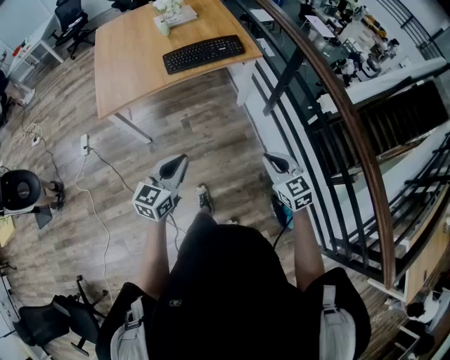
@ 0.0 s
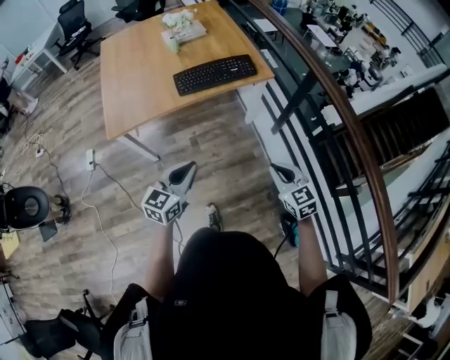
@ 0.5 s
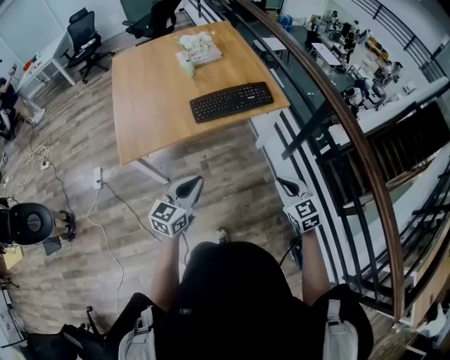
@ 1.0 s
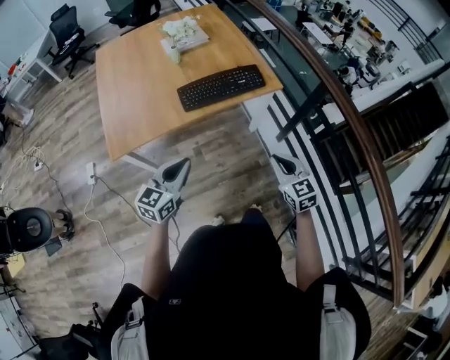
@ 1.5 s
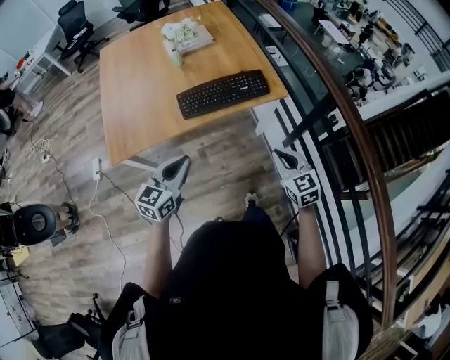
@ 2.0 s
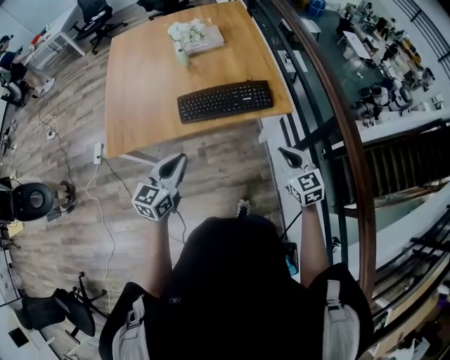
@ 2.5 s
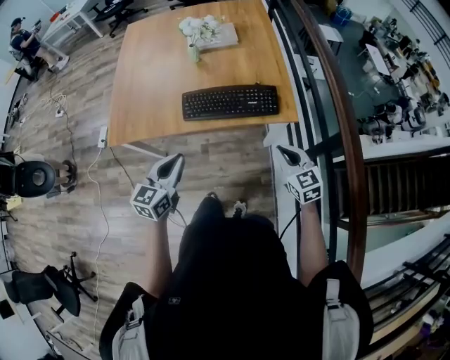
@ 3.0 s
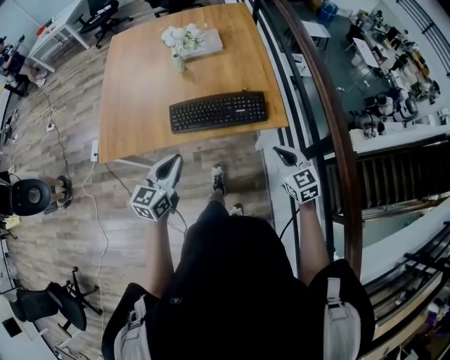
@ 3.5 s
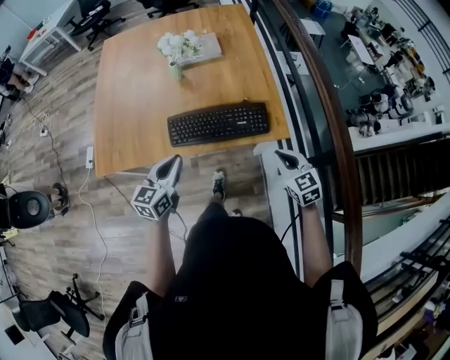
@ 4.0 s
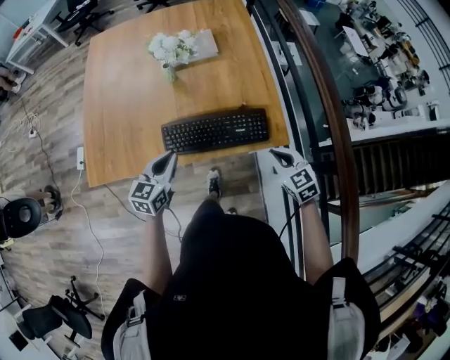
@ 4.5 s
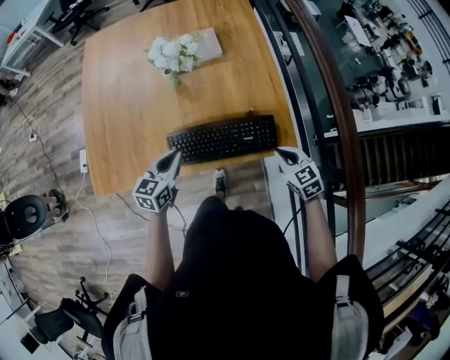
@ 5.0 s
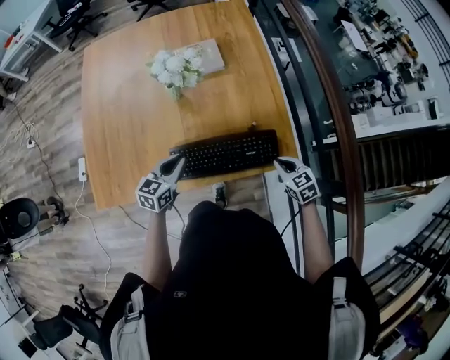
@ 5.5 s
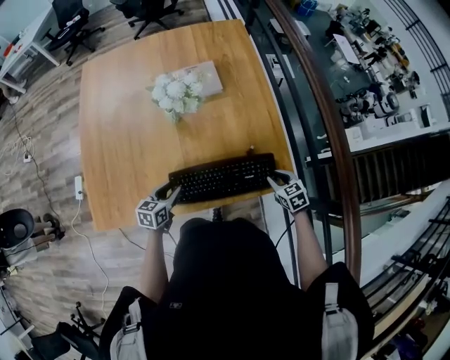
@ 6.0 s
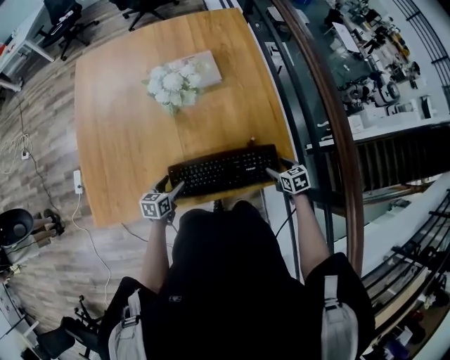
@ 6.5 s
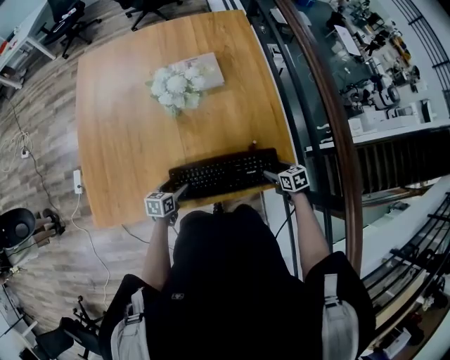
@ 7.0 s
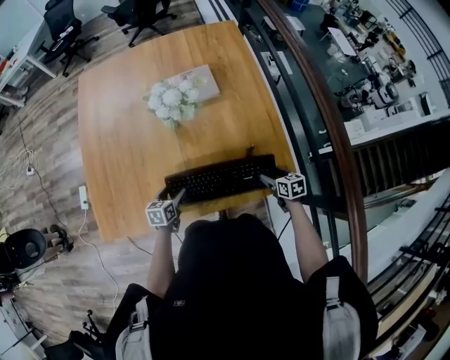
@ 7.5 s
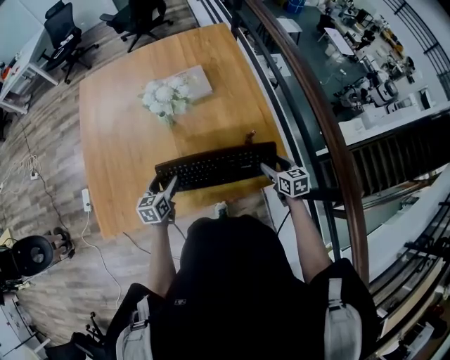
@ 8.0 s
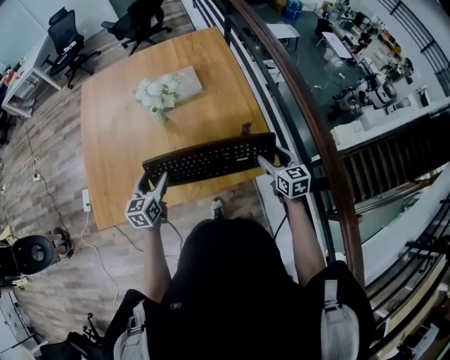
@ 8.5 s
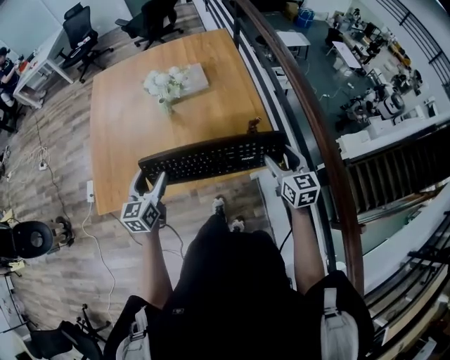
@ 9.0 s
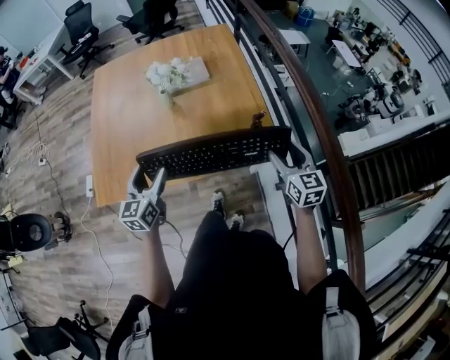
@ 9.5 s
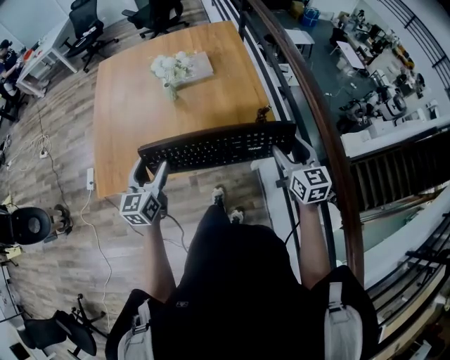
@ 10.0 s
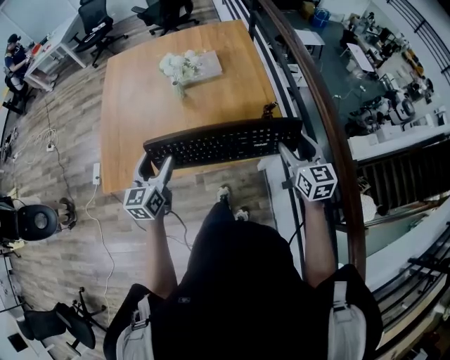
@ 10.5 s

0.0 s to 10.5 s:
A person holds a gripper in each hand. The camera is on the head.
0.0 to 2.0 s: The grippers both shift forward by approximately 30 cm.
2.0 to 4.0 s: The left gripper heads forward, covering roughly 20 cm; the right gripper goes approximately 25 cm forward and to the right.
4.0 to 6.5 s: The left gripper goes approximately 30 cm downward and forward, changes its angle by some 30 degrees, and opens up; the right gripper goes approximately 30 cm forward and downward, rotates some 30 degrees, and opens.
6.5 to 8.5 s: The grippers both shift upward by some 20 cm. The left gripper rotates about 30 degrees, while the right gripper changes its angle by roughly 30 degrees.
8.5 to 10.5 s: The left gripper heads backward and upward, covering roughly 15 cm; the right gripper moves upward and backward, approximately 15 cm.

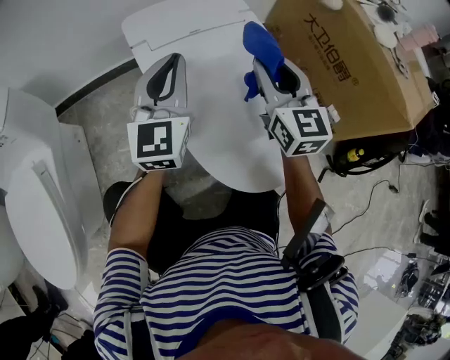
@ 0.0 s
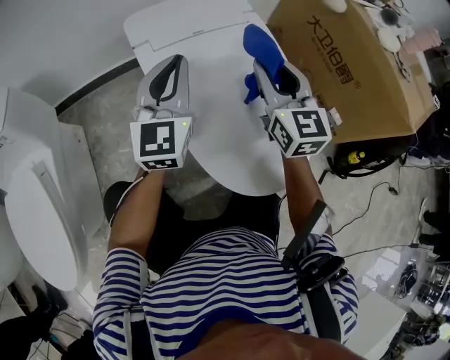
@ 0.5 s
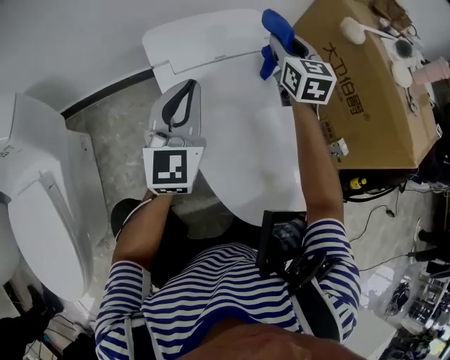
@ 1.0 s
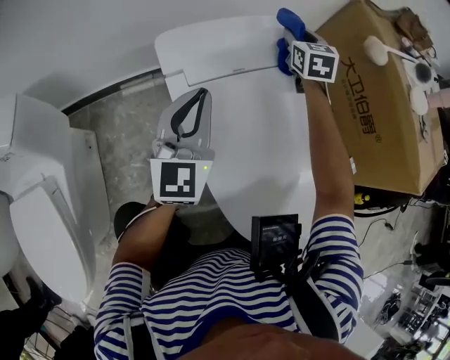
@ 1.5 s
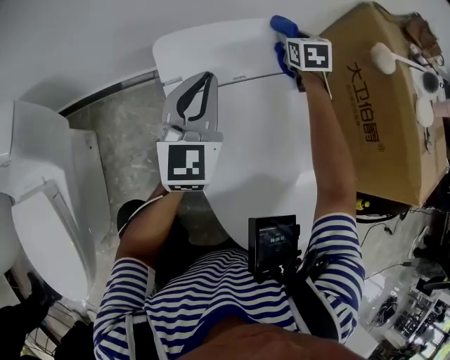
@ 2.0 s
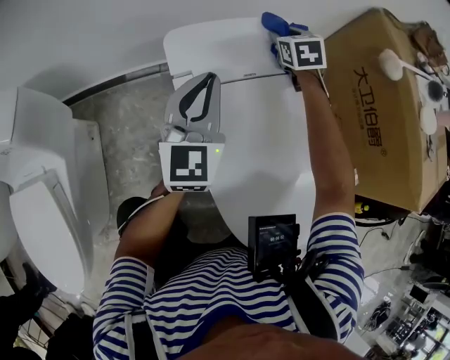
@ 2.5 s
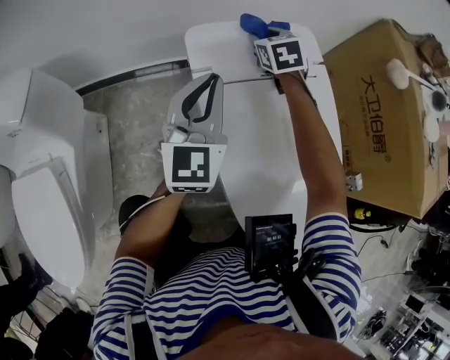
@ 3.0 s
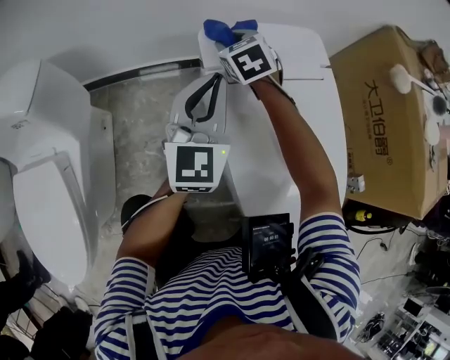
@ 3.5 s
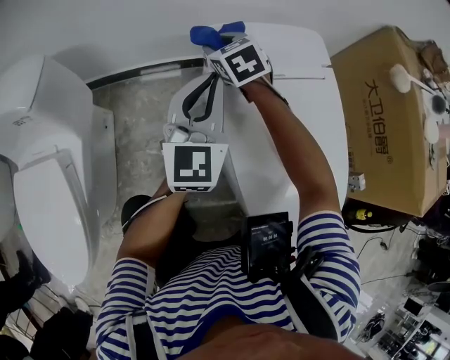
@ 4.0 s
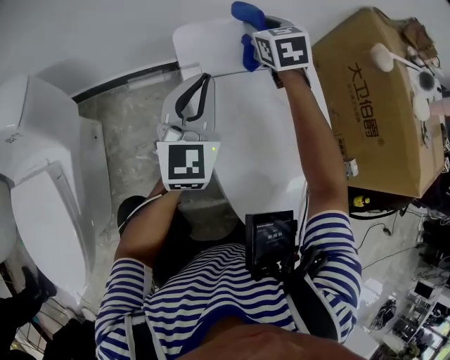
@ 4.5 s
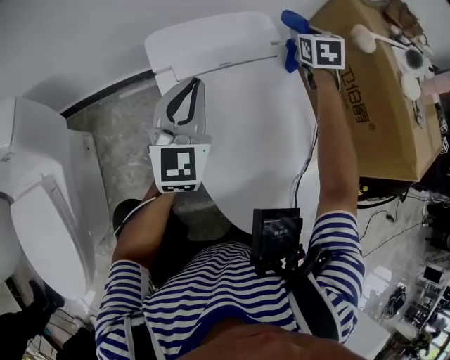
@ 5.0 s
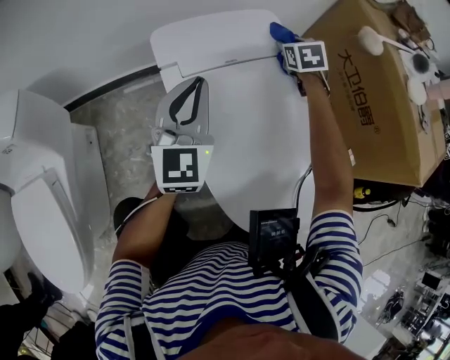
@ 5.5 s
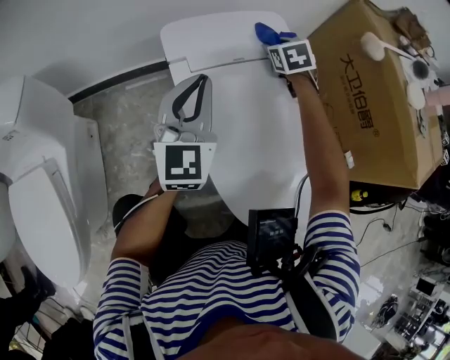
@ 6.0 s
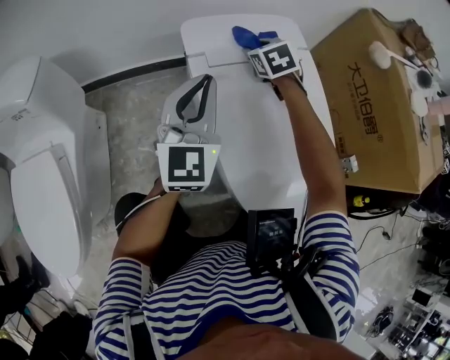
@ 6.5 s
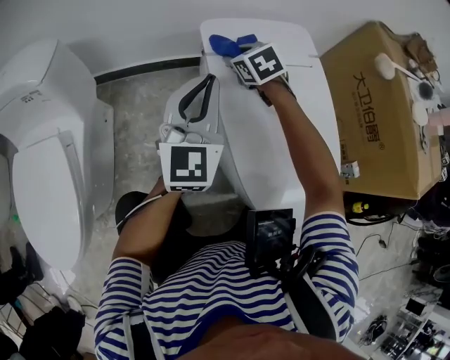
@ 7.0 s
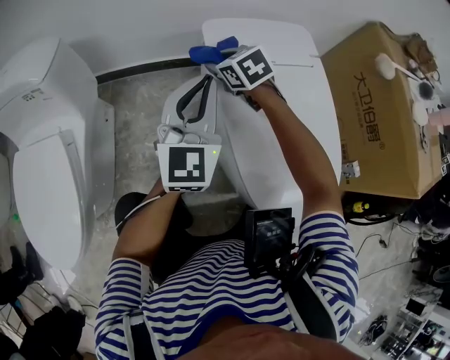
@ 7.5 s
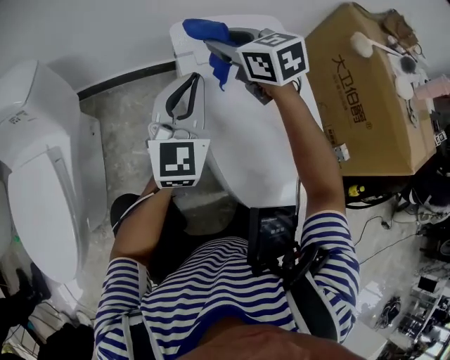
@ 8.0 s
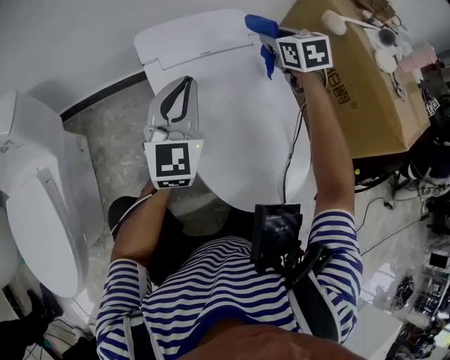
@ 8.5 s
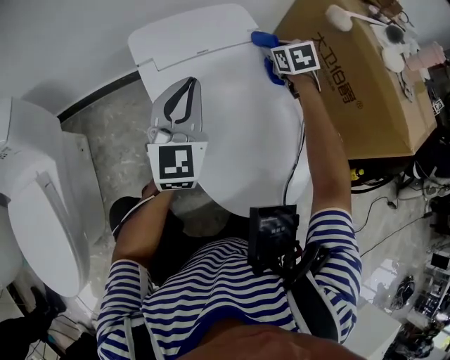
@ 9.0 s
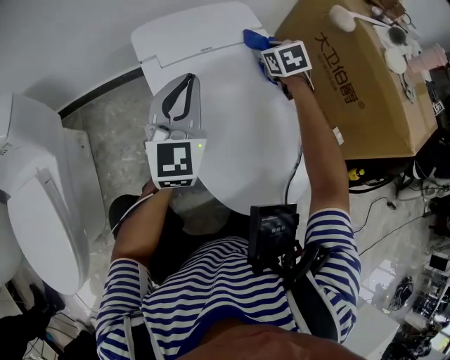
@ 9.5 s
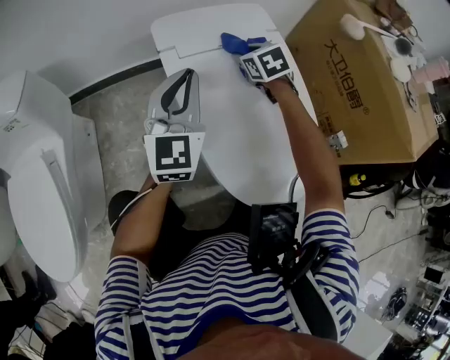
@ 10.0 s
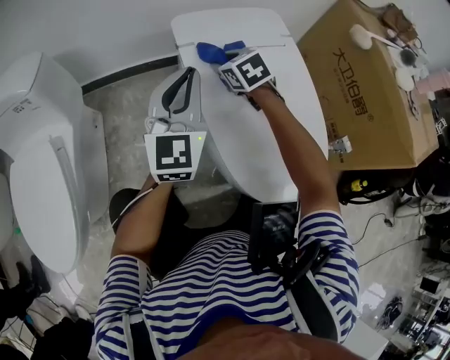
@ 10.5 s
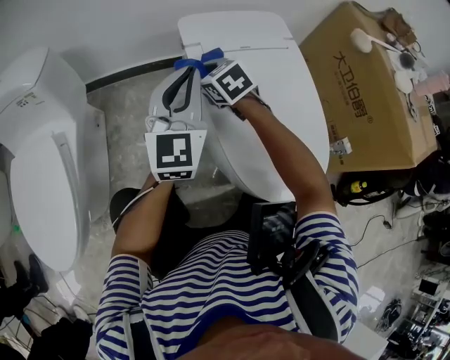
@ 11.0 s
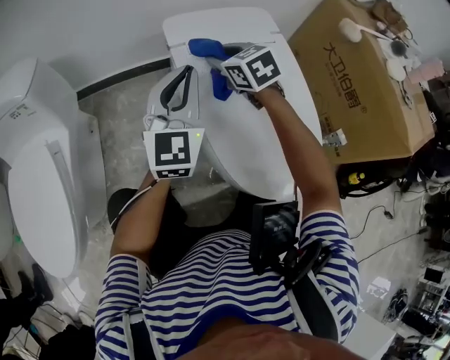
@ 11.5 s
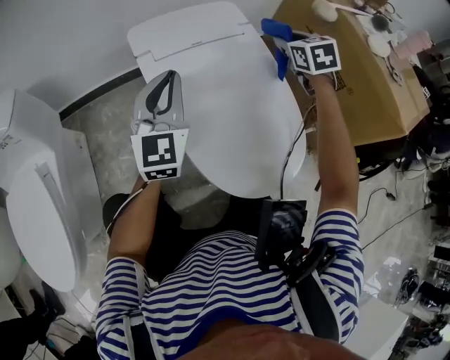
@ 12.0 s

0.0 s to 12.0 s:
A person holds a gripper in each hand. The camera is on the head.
0.0 to 2.0 s: The right gripper is displaced forward by roughly 35 cm, and tips its fingers downward by some 30 degrees. Meanwhile the left gripper goes some 15 cm forward.
2.0 to 4.0 s: The right gripper moves to the left, approximately 35 cm, and rotates some 30 degrees. The left gripper shifts some 10 cm to the left.
4.0 to 6.0 s: The right gripper goes roughly 30 cm to the right, and rotates about 20 degrees; the left gripper goes some 10 cm to the right.
6.0 to 8.0 s: The left gripper moves approximately 5 cm, while the right gripper goes about 25 cm to the left, upward and backward, and changes its angle by roughly 40 degrees.
8.0 to 10.0 s: The right gripper is displaced to the right and downward by approximately 20 cm, and swivels roughly 30 degrees.
10.0 to 12.0 s: The right gripper is displaced to the right and upward by roughly 20 cm; the left gripper goes to the left and returns, roughly 5 cm each way.

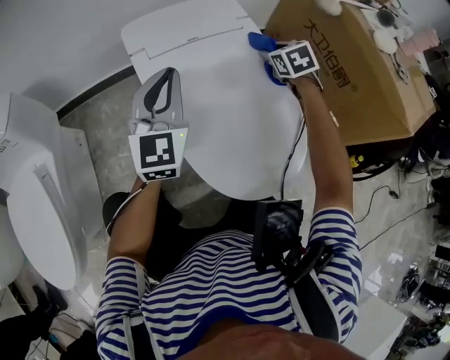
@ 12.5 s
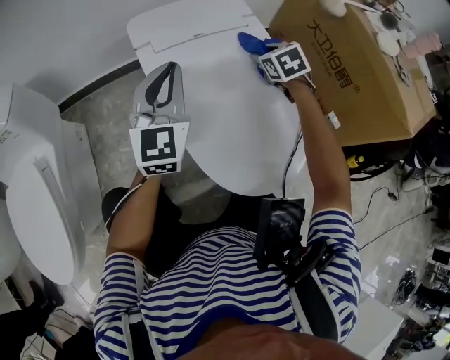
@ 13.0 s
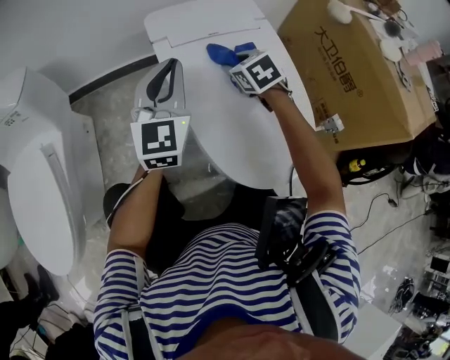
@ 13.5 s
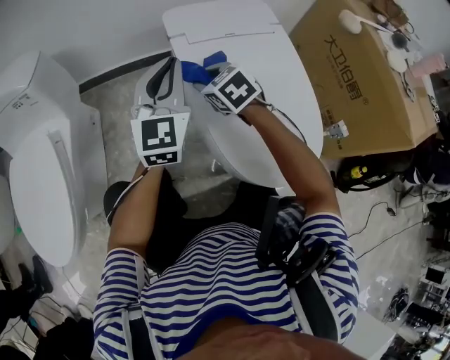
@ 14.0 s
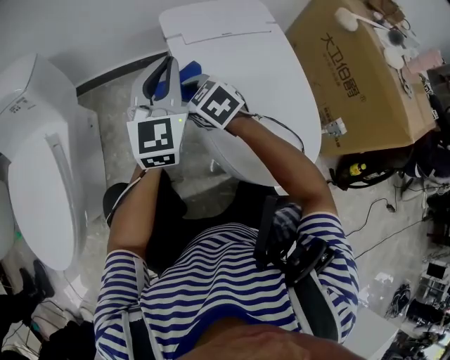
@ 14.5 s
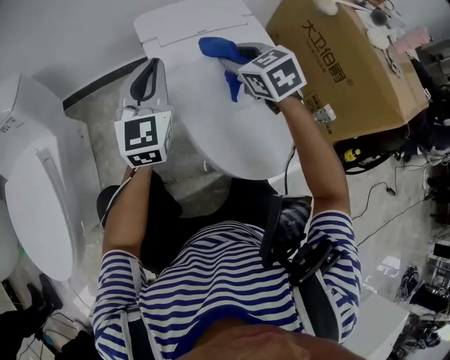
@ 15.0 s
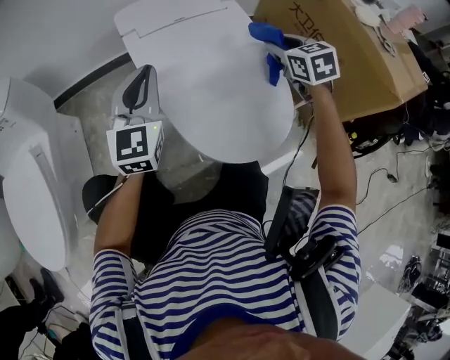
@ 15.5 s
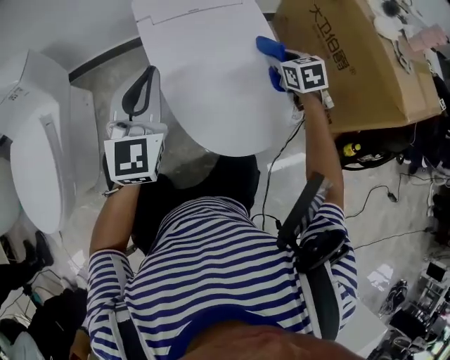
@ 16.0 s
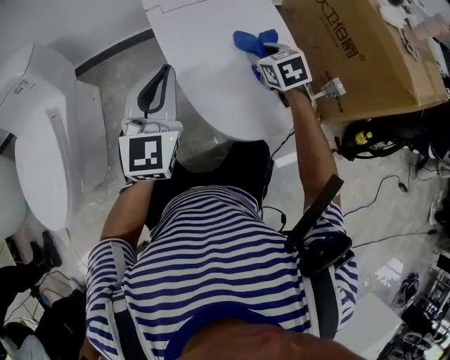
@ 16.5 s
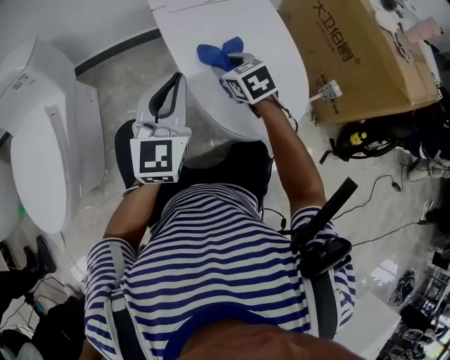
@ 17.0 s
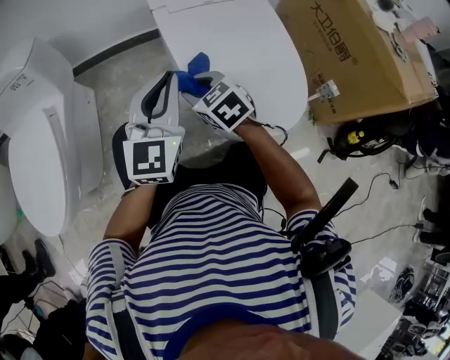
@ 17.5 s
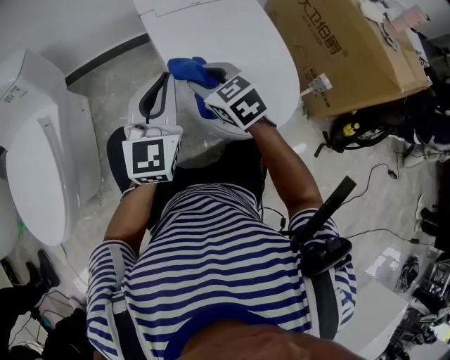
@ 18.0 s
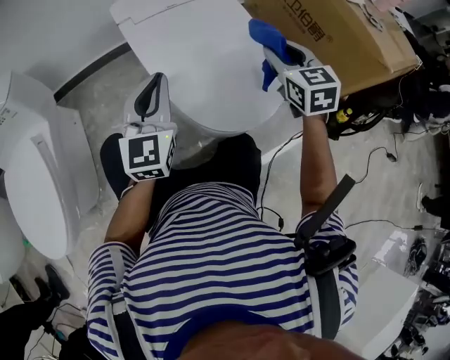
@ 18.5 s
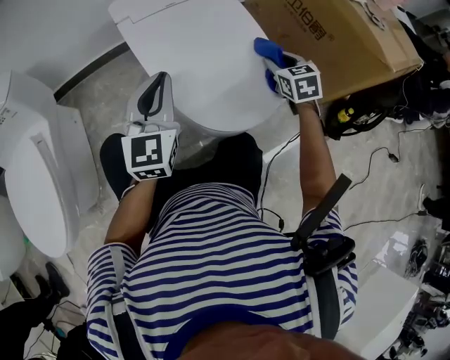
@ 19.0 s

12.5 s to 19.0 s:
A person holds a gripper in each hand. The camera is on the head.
12.5 to 14.5 s: The right gripper heads to the left, covering roughly 40 cm, and turns by about 40 degrees. Meanwhile the left gripper goes about 10 cm to the left.
14.5 to 17.0 s: The right gripper heads to the right and backward, covering approximately 15 cm, and changes its angle by roughly 20 degrees. The left gripper goes approximately 15 cm backward.
17.0 to 19.0 s: The right gripper moves to the right, approximately 25 cm, and rotates about 20 degrees.
